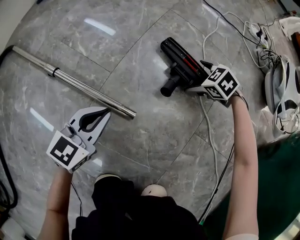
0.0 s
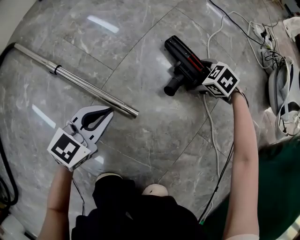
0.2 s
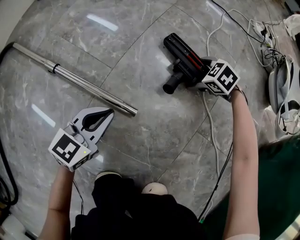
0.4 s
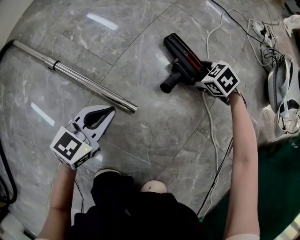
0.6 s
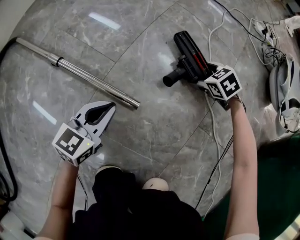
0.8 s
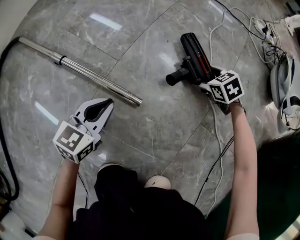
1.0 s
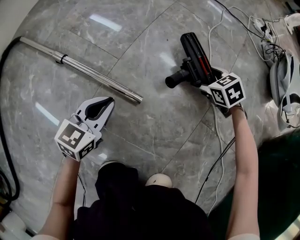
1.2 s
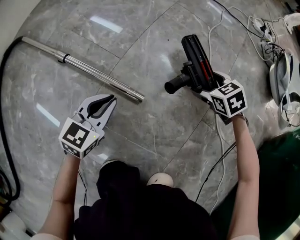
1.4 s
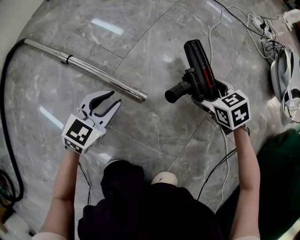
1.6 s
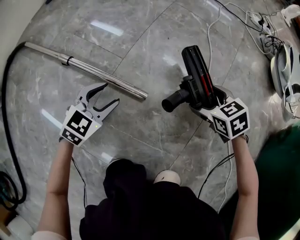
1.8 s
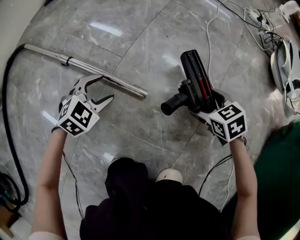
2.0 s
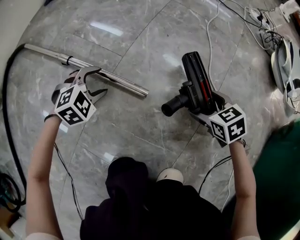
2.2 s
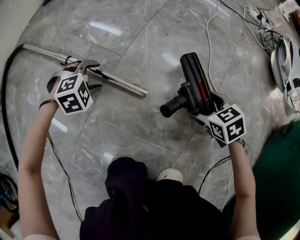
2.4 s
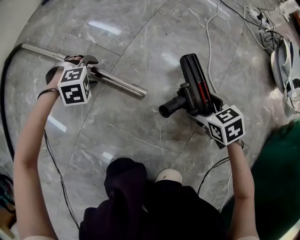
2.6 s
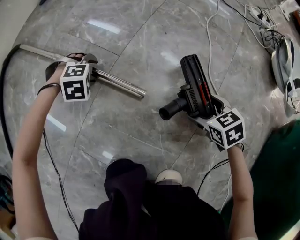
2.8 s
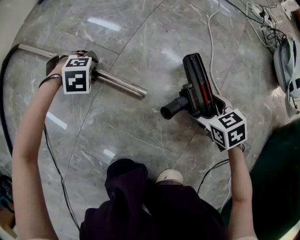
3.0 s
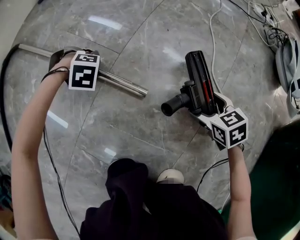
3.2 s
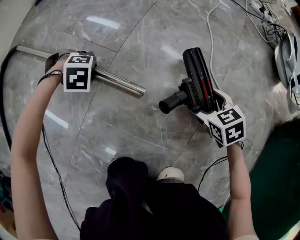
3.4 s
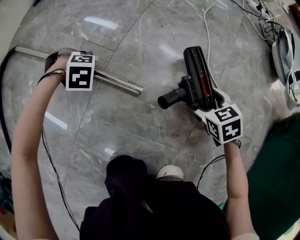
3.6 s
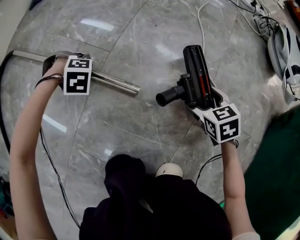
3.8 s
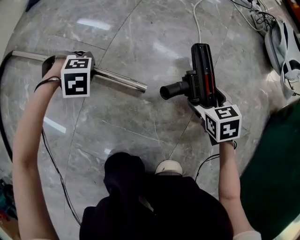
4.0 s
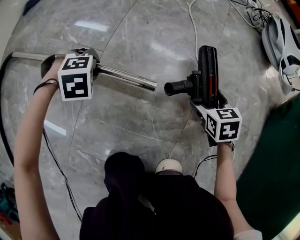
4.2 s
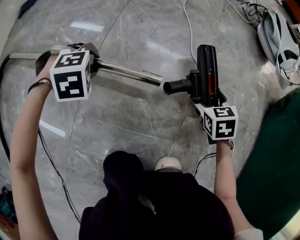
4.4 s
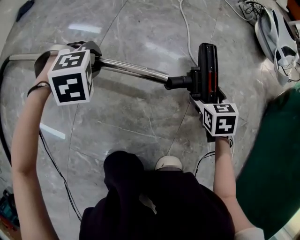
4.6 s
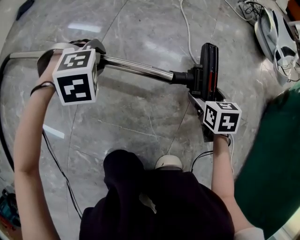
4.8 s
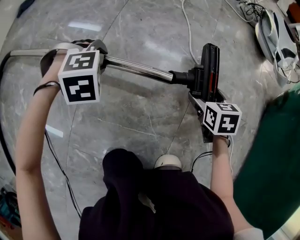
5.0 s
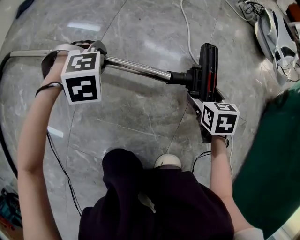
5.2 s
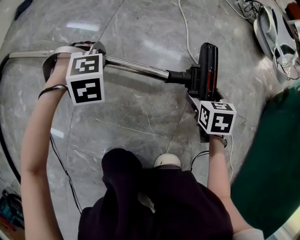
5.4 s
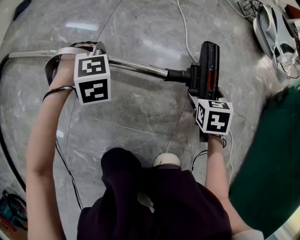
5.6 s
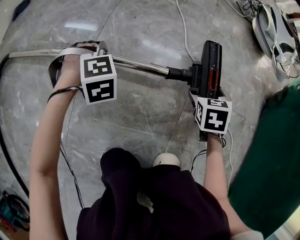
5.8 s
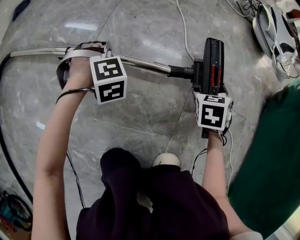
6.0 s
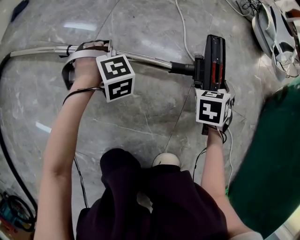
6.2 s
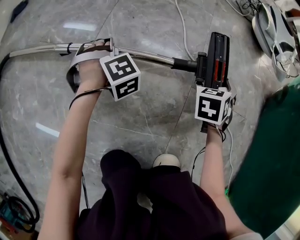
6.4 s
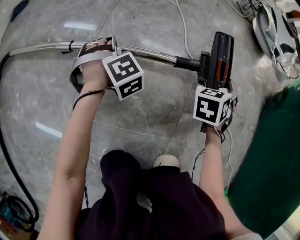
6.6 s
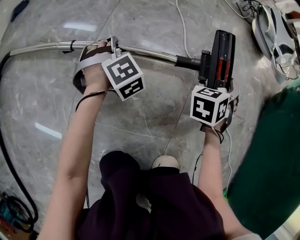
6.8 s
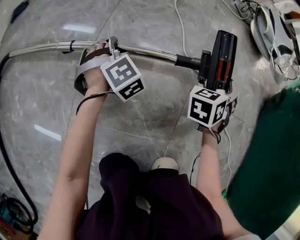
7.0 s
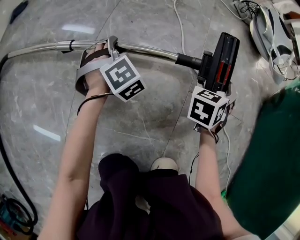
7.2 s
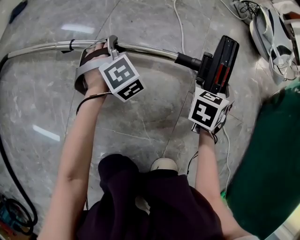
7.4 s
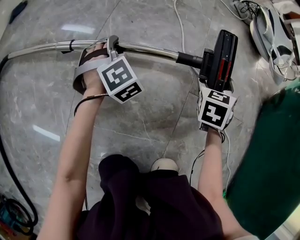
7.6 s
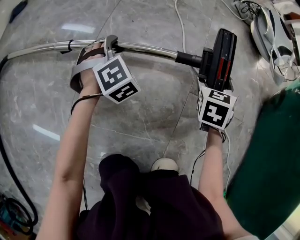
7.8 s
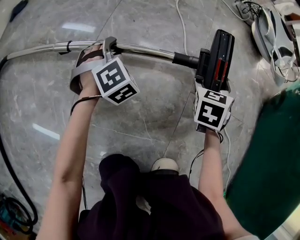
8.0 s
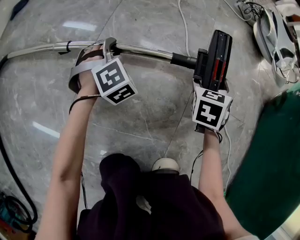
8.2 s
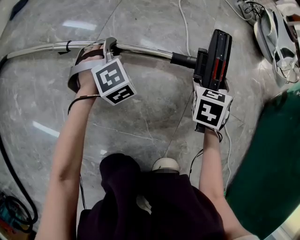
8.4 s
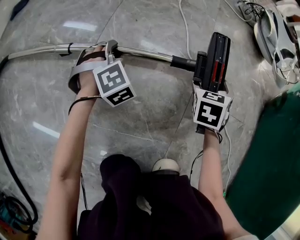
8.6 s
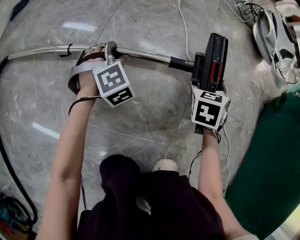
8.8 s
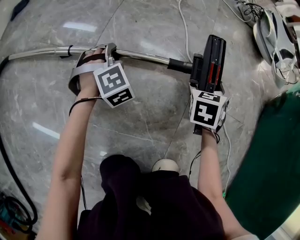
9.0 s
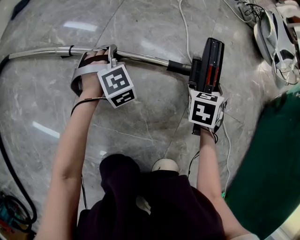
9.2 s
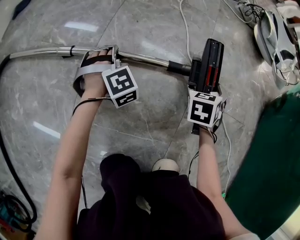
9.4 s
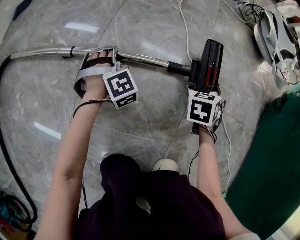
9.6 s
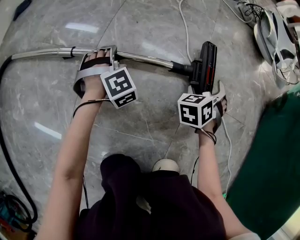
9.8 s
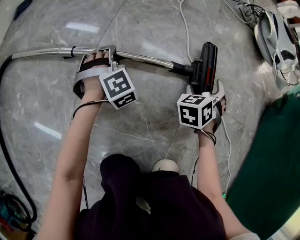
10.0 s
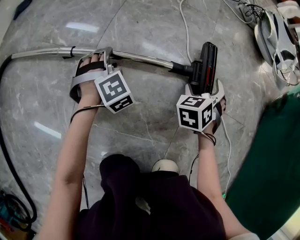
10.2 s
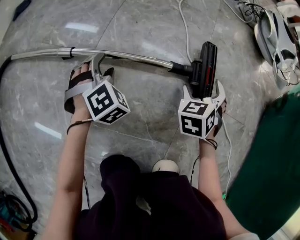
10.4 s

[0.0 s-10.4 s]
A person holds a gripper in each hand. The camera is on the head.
0.0 to 1.4 s: The right gripper heads backward, covering roughly 5 cm.
1.4 to 3.0 s: The right gripper changes place by approximately 10 cm; the left gripper ends up some 15 cm from where it was, angles its fingers downward, by approximately 60 degrees, and opens.
3.0 to 4.4 s: The right gripper moves approximately 10 cm, and rotates about 30 degrees. Meanwhile the left gripper moves approximately 10 cm, and closes up.
4.4 to 6.0 s: The left gripper shifts by some 5 cm.
6.0 to 7.4 s: The left gripper heads forward, covering about 5 cm, and swivels roughly 30 degrees.
7.4 to 9.0 s: There are only small adjustments of the grippers.
9.0 to 10.4 s: There are only small adjustments of the grippers.

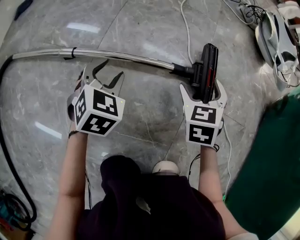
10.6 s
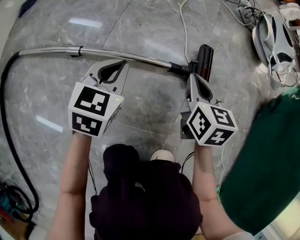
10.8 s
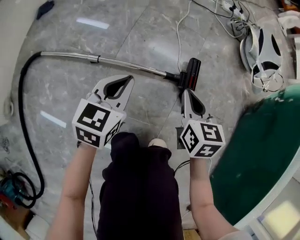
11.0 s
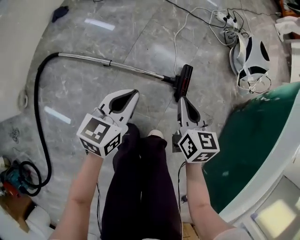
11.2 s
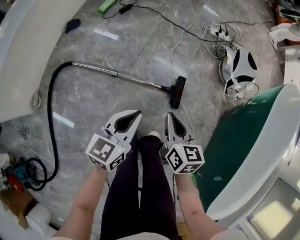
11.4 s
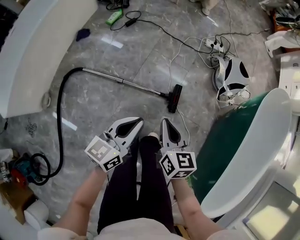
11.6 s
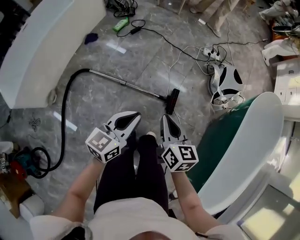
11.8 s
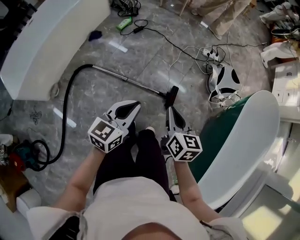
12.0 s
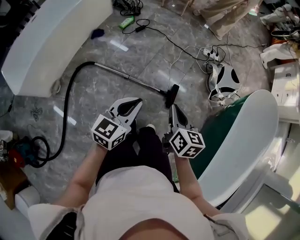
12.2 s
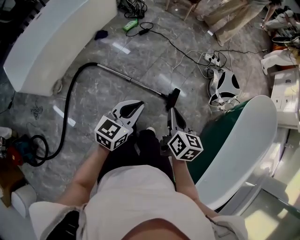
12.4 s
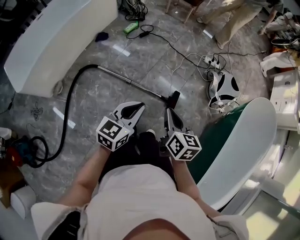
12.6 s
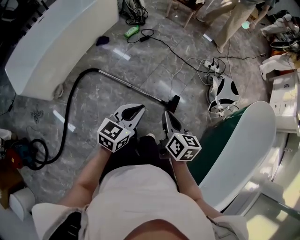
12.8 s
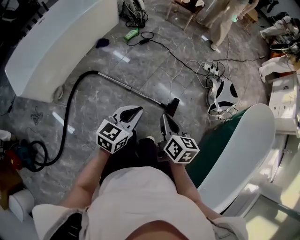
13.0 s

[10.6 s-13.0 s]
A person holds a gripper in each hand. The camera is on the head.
10.6 to 11.8 s: Both grippers move upward, some 70 cm. The left gripper angles its fingers upward, by approximately 30 degrees, and closes up. Meanwhile the right gripper rotates some 50 degrees, and closes up.
11.8 to 13.0 s: The left gripper ends up some 5 cm from where it was; the right gripper ends up roughly 5 cm from where it was.

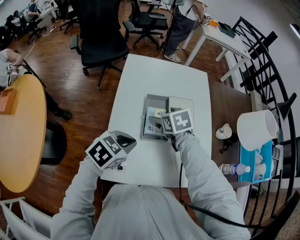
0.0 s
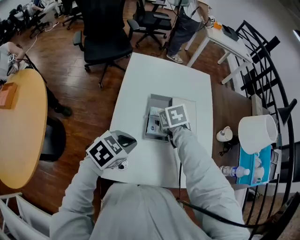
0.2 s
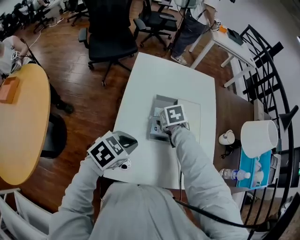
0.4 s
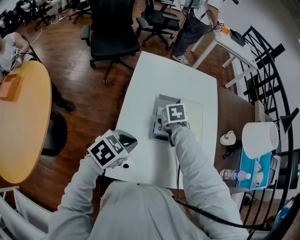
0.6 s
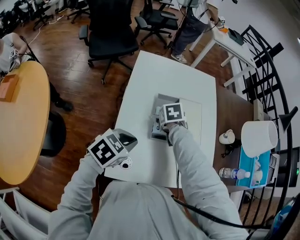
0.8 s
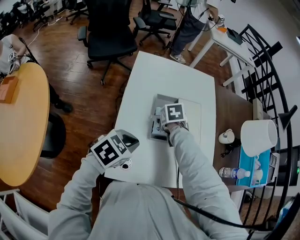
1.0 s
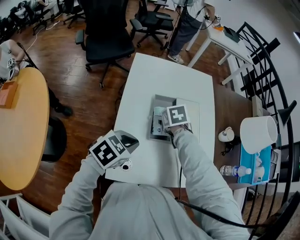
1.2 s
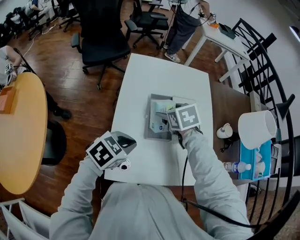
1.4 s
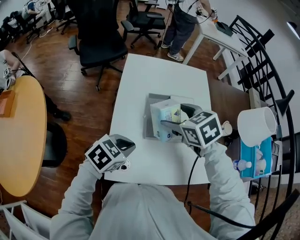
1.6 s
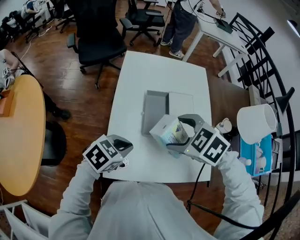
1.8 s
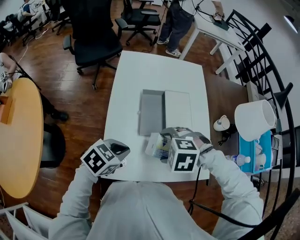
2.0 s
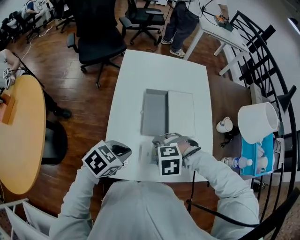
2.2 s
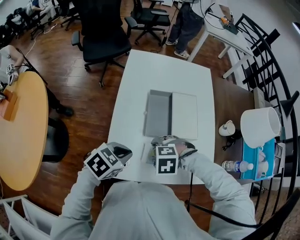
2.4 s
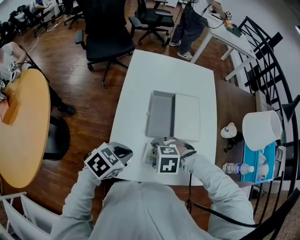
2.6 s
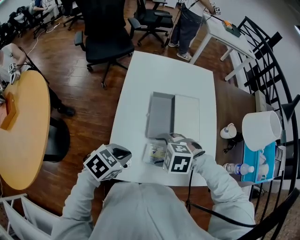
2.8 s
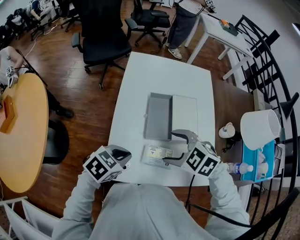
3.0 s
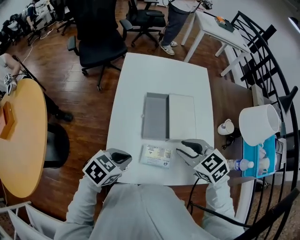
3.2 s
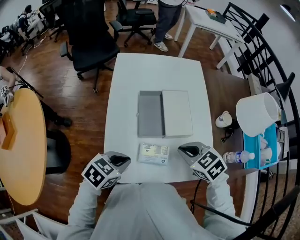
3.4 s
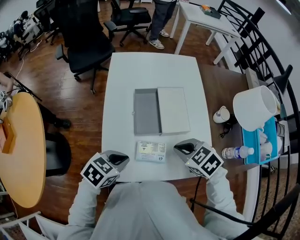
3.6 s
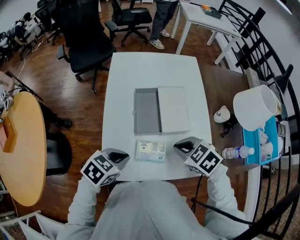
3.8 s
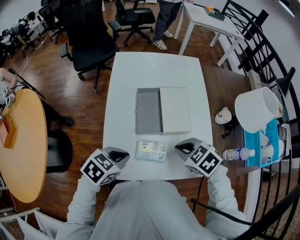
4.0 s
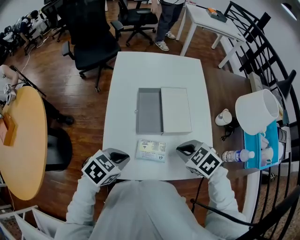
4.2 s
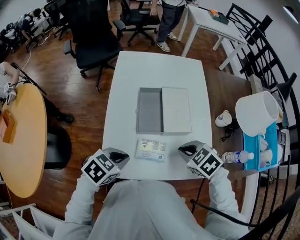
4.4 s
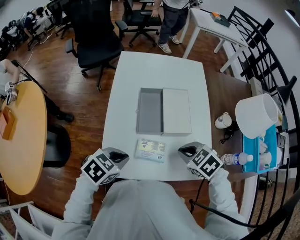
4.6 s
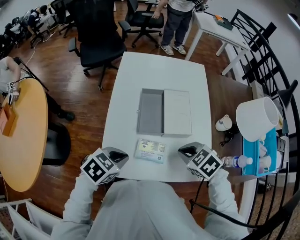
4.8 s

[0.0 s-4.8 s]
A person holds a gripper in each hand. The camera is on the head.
0.0 to 1.6 s: The right gripper moves upward, about 10 cm.
1.6 to 3.2 s: The right gripper goes downward and returns, about 15 cm each way, and closes up.
3.2 to 4.8 s: The right gripper ends up approximately 10 cm from where it was, and closes up.

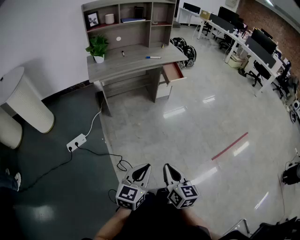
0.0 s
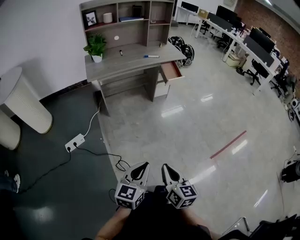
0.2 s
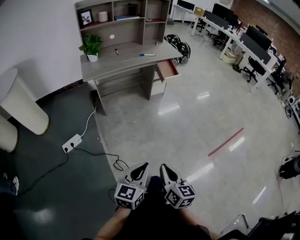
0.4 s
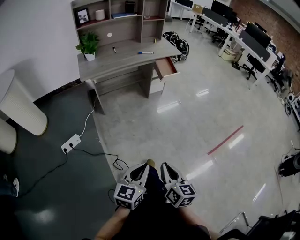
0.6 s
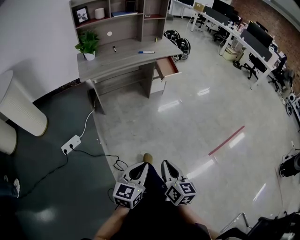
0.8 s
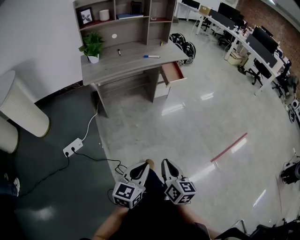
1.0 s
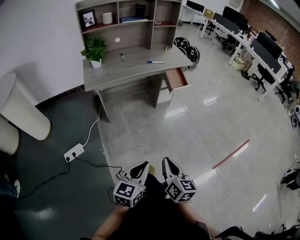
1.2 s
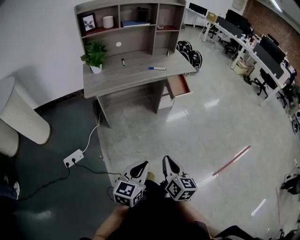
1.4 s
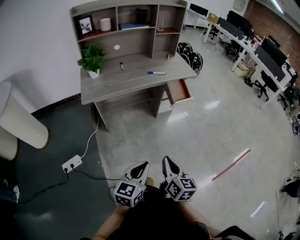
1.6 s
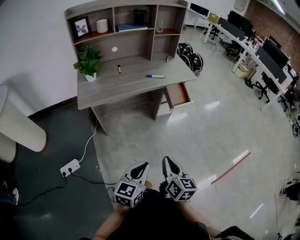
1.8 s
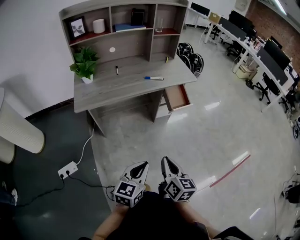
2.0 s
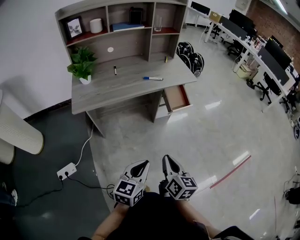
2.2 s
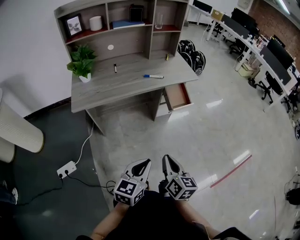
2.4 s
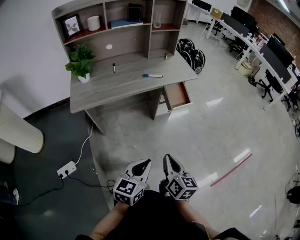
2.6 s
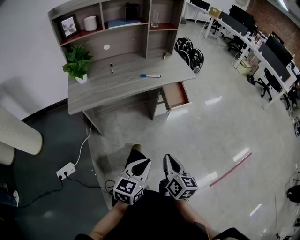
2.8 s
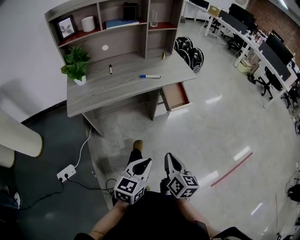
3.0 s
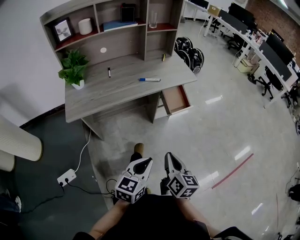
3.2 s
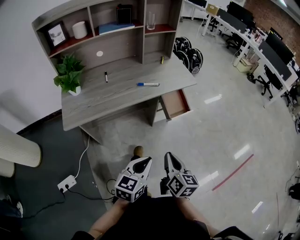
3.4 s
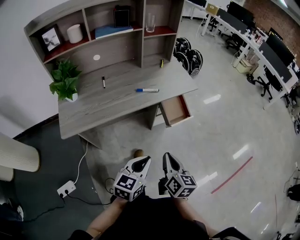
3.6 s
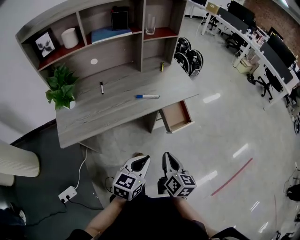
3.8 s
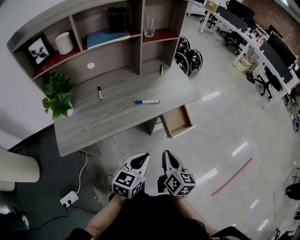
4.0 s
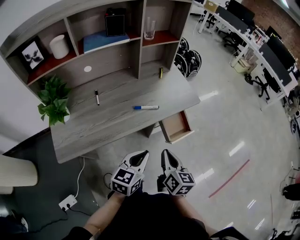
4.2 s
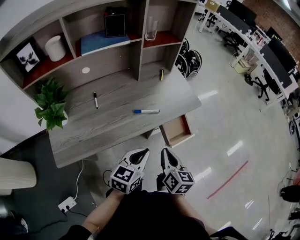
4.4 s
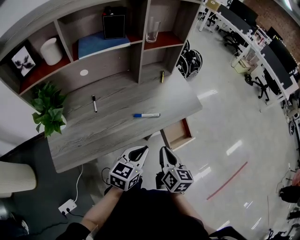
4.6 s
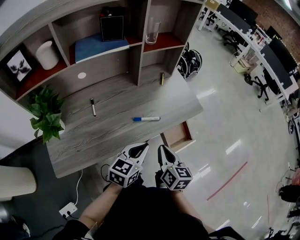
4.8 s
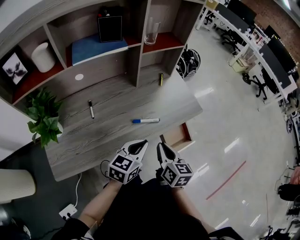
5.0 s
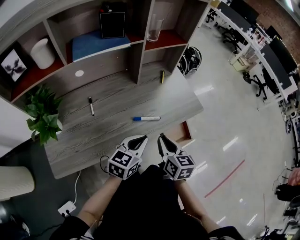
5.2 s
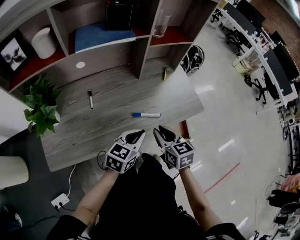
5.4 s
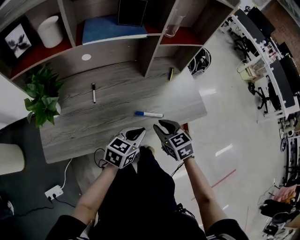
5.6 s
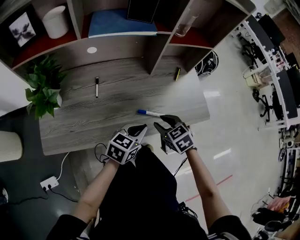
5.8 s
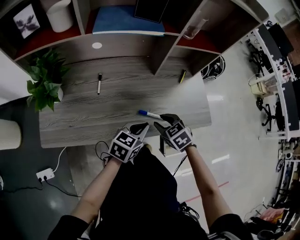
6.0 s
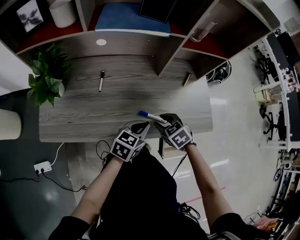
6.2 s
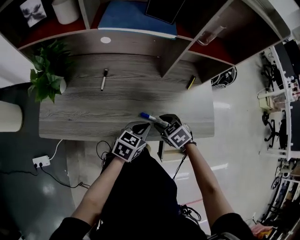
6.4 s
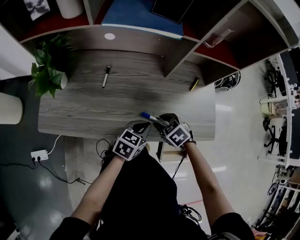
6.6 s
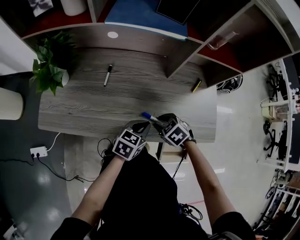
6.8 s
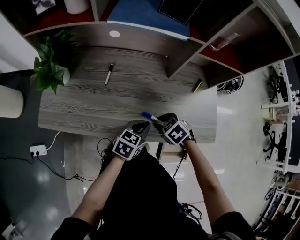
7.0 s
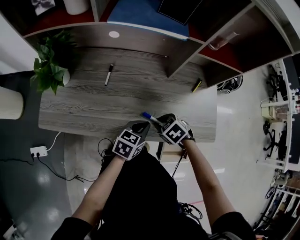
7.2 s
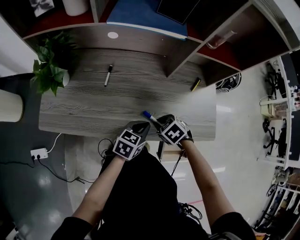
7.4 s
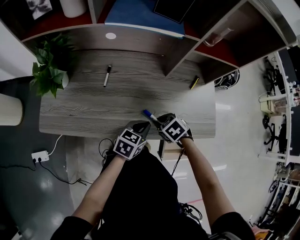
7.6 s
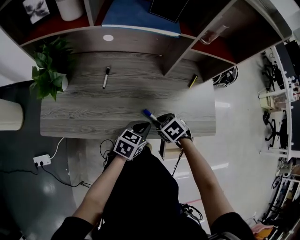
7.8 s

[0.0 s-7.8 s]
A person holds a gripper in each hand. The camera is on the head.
0.0 to 1.6 s: The grippers both shift forward by roughly 25 cm.
1.6 to 3.2 s: The grippers both shift forward by roughly 20 cm.
3.2 to 4.6 s: The grippers both shift forward by roughly 30 cm.
4.6 to 6.2 s: The right gripper changes place by roughly 20 cm, tilts its fingers roughly 40 degrees downward, and opens. The left gripper moves some 15 cm.
6.2 to 7.8 s: The grippers move only a little.
